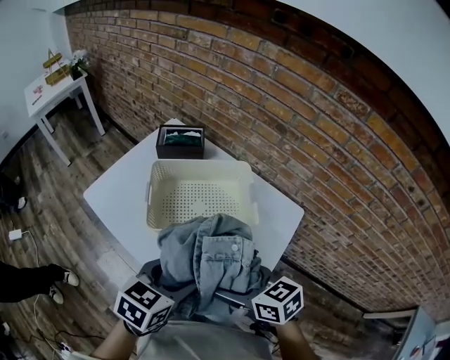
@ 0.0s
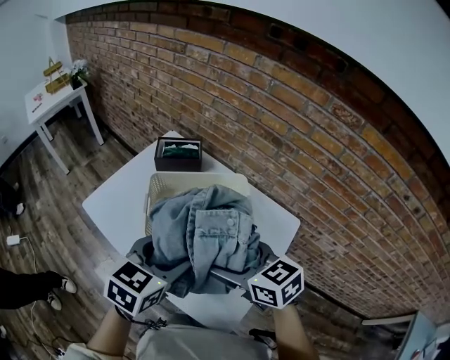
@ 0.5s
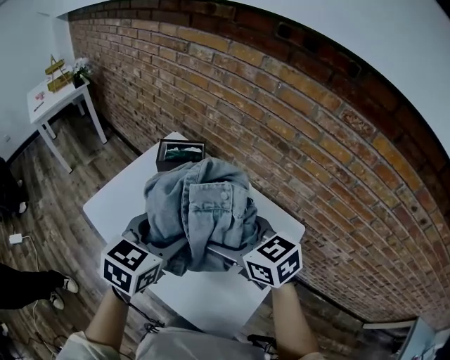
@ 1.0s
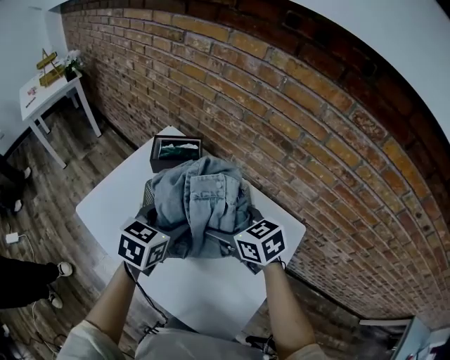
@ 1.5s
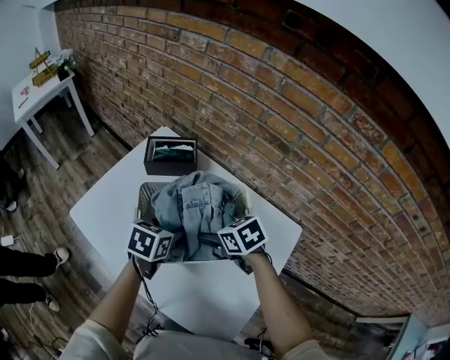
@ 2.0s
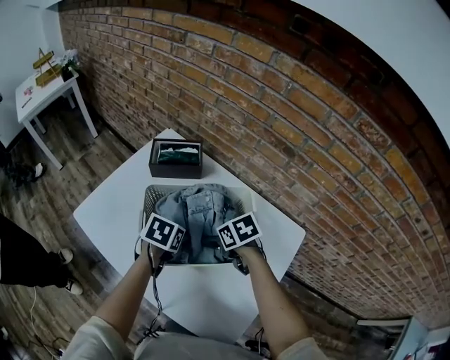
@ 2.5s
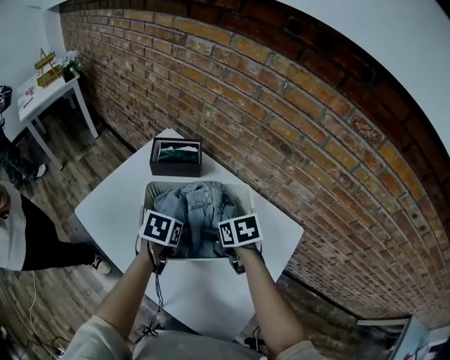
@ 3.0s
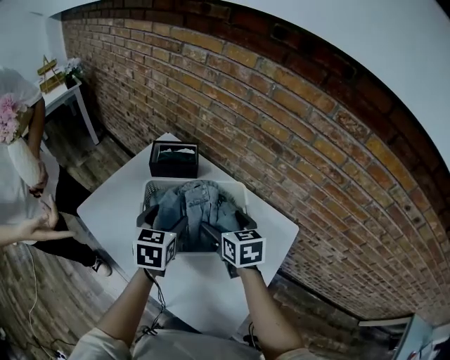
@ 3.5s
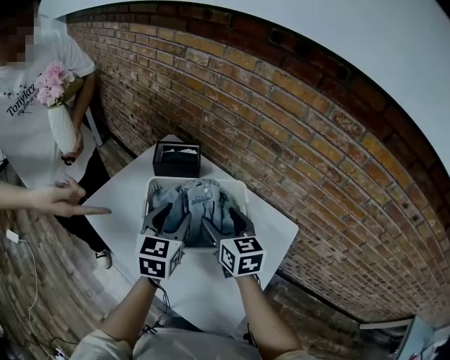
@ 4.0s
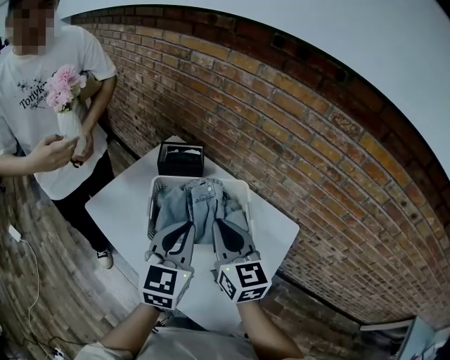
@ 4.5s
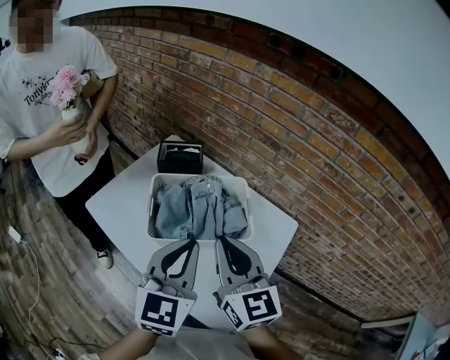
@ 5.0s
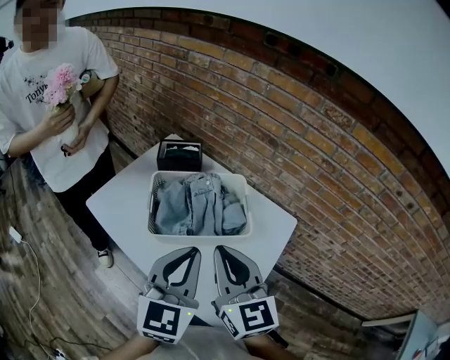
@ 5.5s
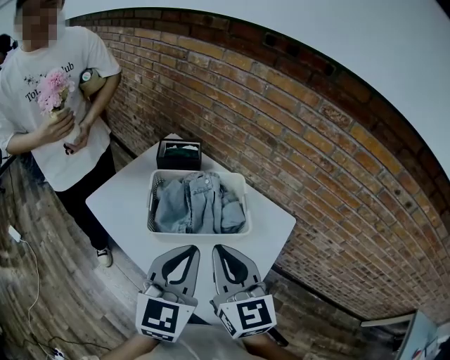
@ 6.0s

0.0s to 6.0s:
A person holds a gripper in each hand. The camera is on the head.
0.0s to 2.0s: The two grippers go about 25 cm forward.
2.0s to 4.0s: The grippers both shift upward by approximately 10 cm. The left gripper turns by about 30 degrees. The right gripper tips its fingers upward by about 30 degrees.
4.0s to 6.0s: Both grippers travel together backward and upward, some 20 cm. The right gripper closes; the left gripper closes its fingers.

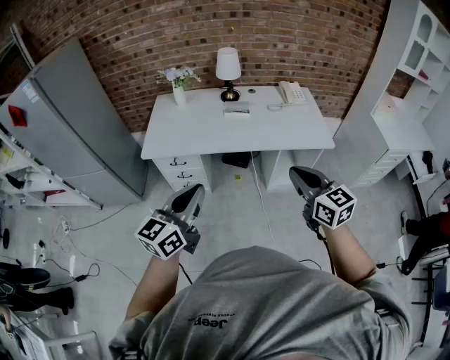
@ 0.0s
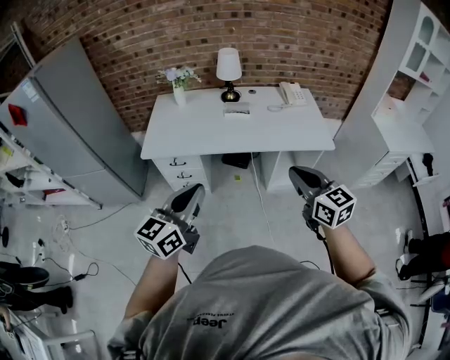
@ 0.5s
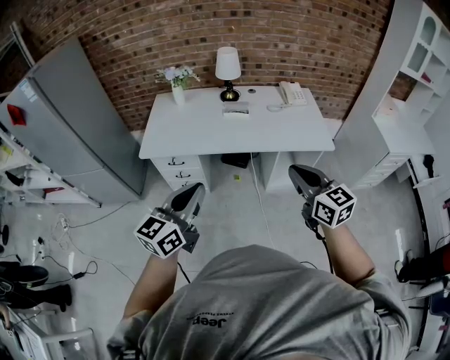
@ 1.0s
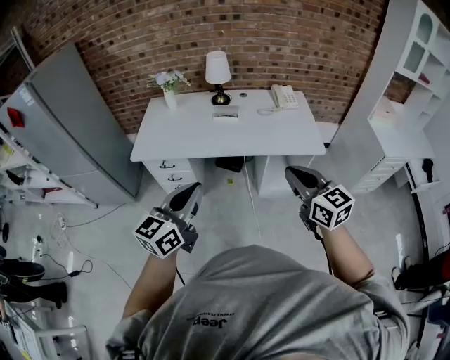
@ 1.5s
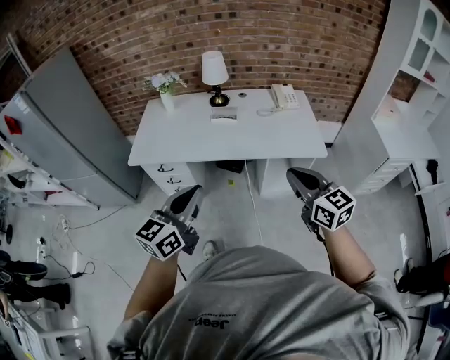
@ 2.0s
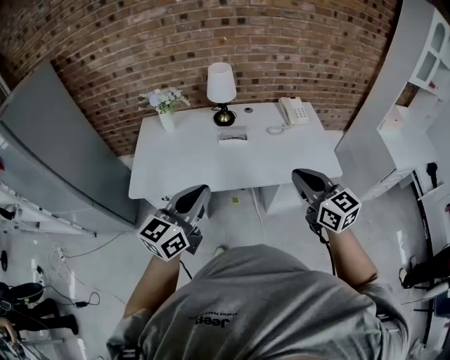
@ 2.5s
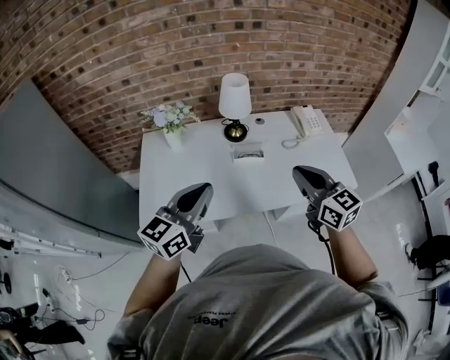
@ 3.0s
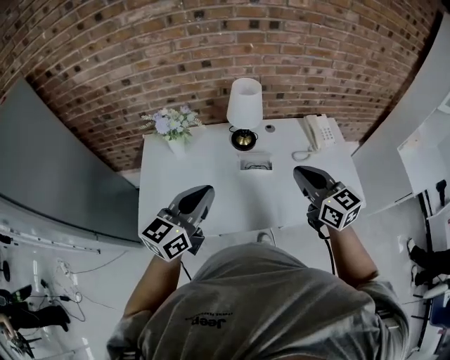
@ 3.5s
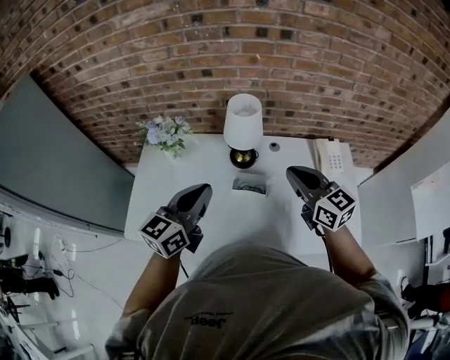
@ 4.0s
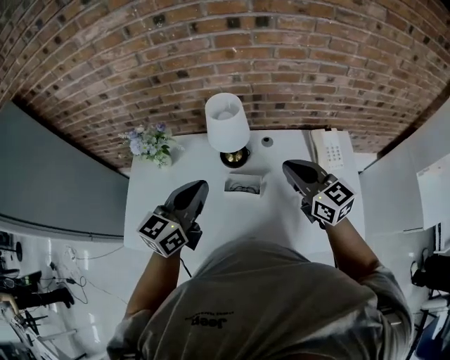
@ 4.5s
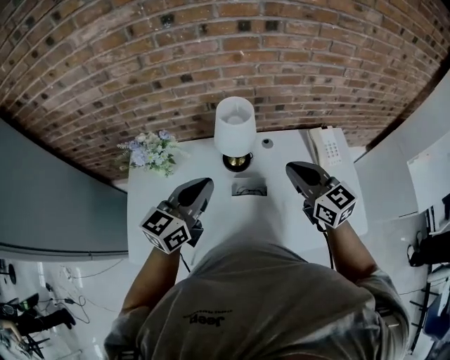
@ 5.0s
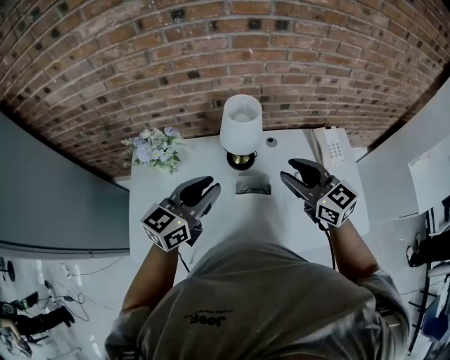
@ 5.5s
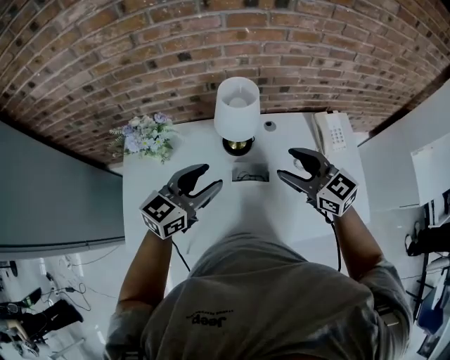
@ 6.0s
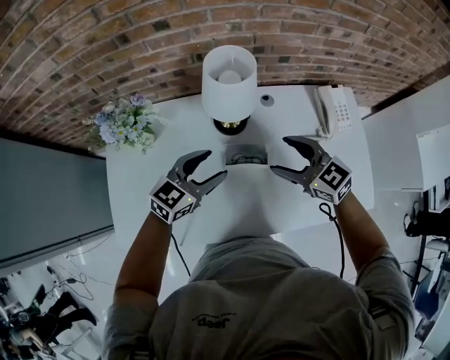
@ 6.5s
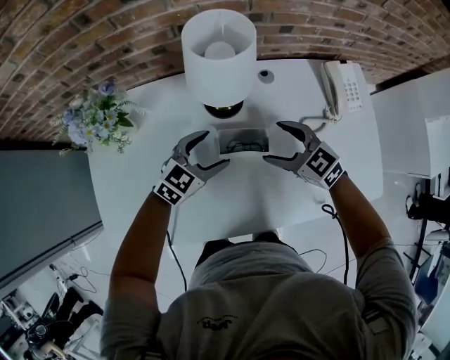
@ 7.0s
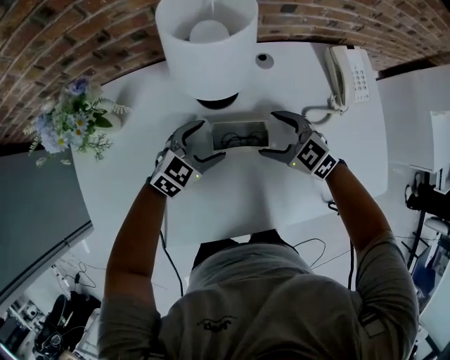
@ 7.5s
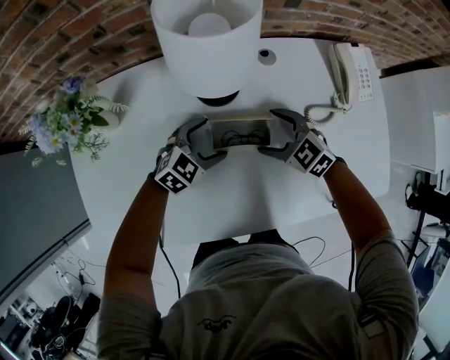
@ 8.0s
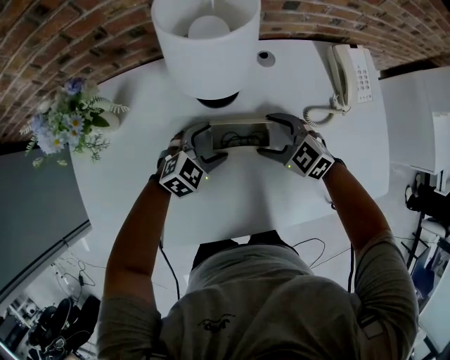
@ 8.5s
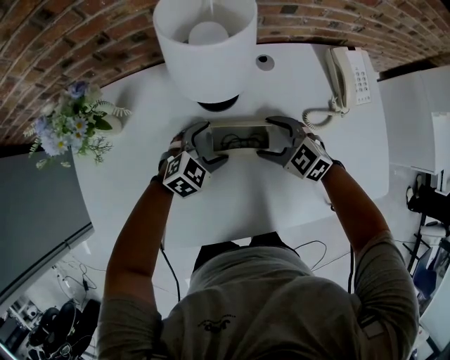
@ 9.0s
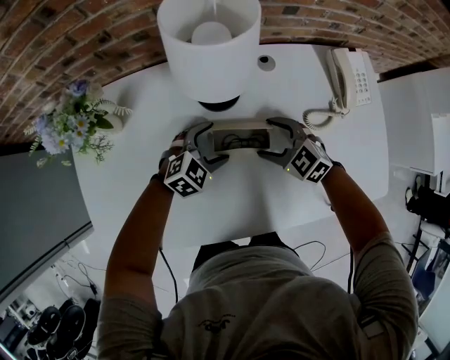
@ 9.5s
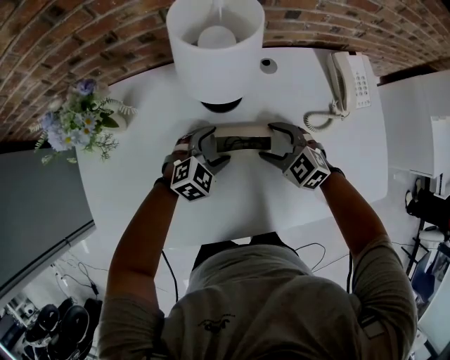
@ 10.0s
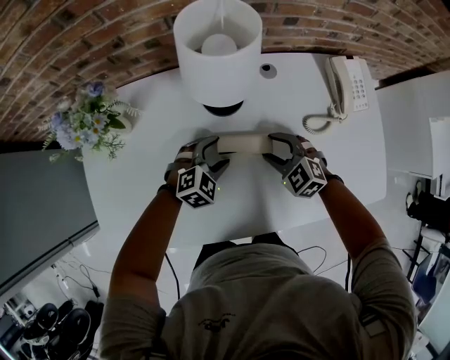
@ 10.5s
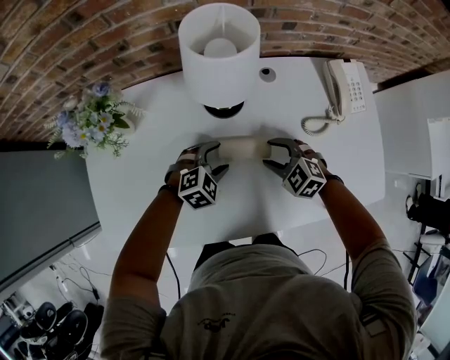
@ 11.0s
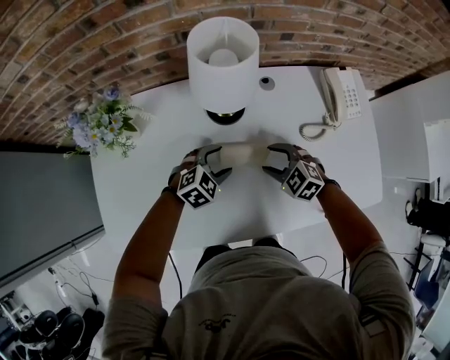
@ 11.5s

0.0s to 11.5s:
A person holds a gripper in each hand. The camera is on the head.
0.0s to 2.0s: Both grippers move to the right and forward, some 15 cm.
2.0s to 4.0s: The pair of grippers is taken forward, about 50 cm.
4.0s to 6.0s: The left gripper shifts about 10 cm forward and downward, turns by some 20 degrees, and opens up. Meanwhile the right gripper moves downward, roughly 5 cm, and opens.
6.0s to 7.5s: Both grippers move downward, approximately 30 cm. The left gripper turns by some 30 degrees, and opens its fingers. Meanwhile the right gripper rotates some 30 degrees, and opens up.
7.5s to 9.5s: The grippers move only a little.
9.5s to 11.5s: There are only small adjustments of the grippers.

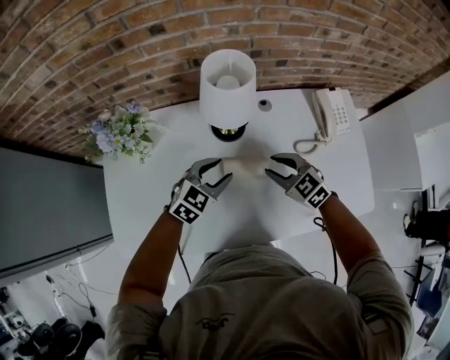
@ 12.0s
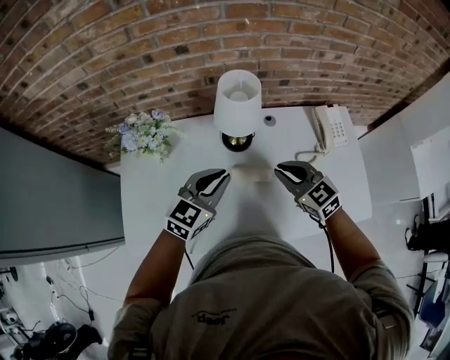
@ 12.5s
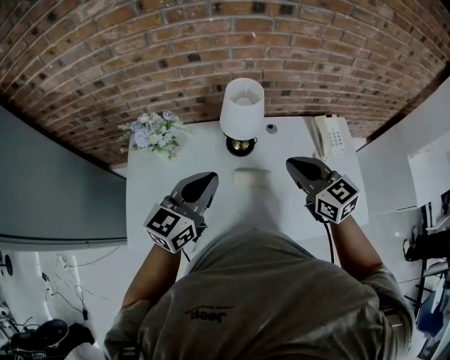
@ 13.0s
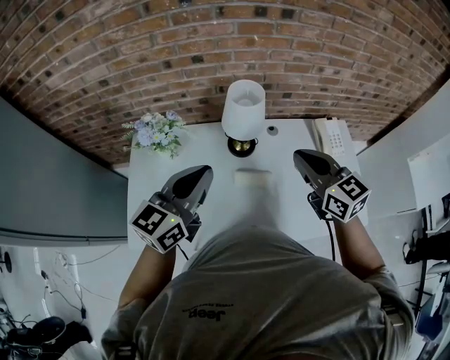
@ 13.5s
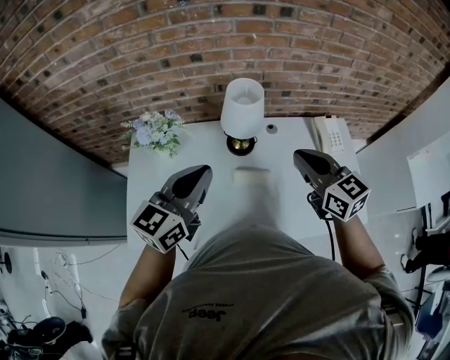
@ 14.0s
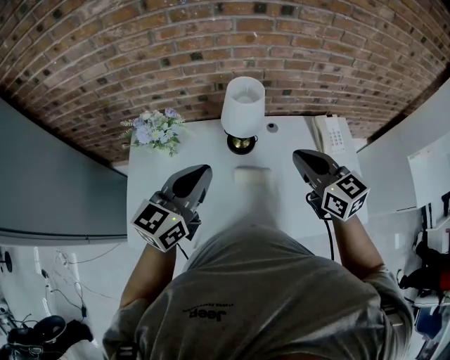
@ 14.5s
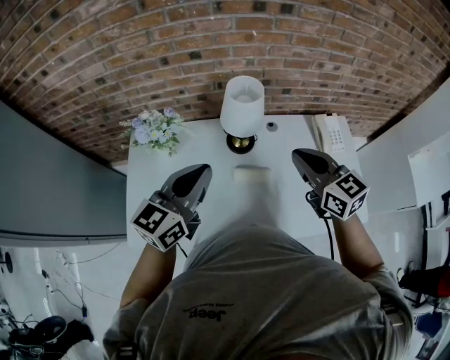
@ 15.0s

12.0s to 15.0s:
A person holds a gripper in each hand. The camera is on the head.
12.0s to 13.5s: The two grippers go roughly 30 cm upward. The left gripper rotates approximately 40 degrees, and closes its fingers. The right gripper turns by some 30 degrees.
13.5s to 15.0s: The two grippers keep their place.

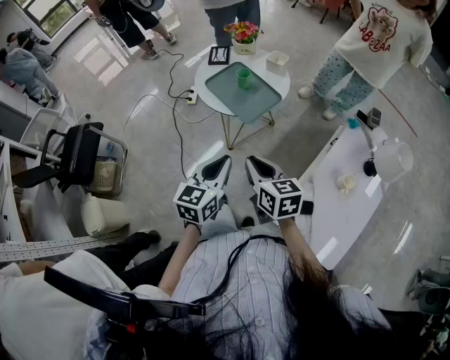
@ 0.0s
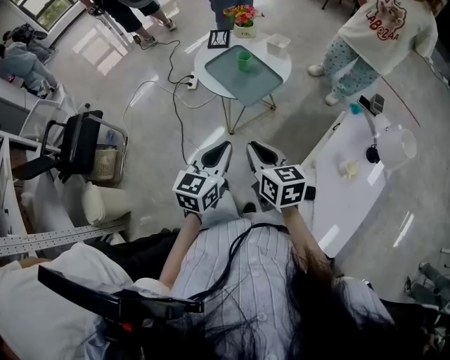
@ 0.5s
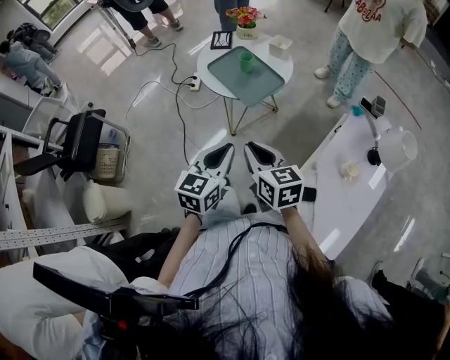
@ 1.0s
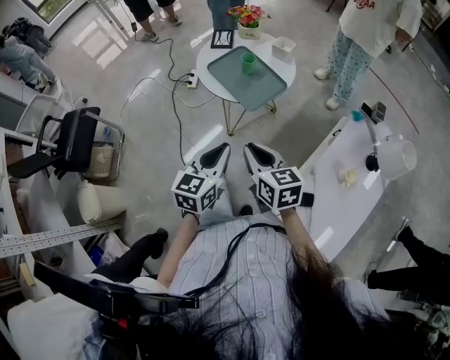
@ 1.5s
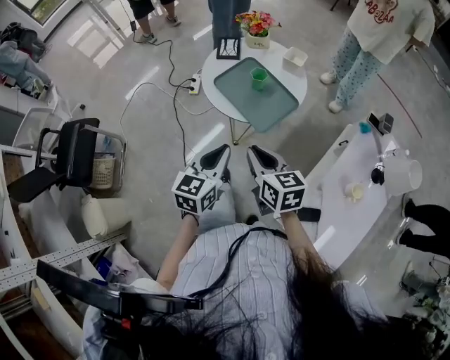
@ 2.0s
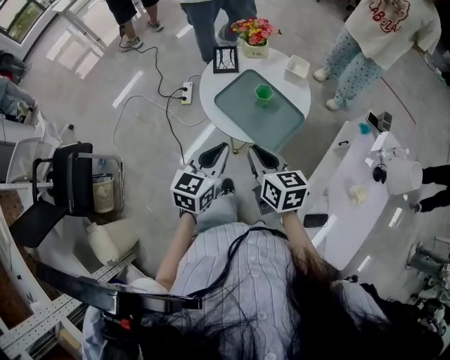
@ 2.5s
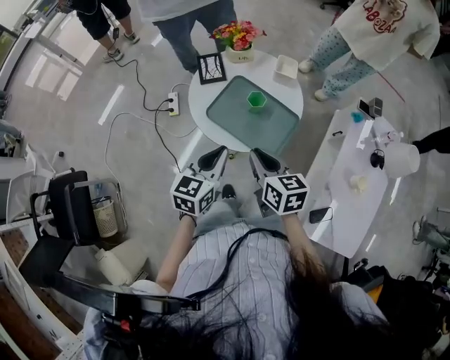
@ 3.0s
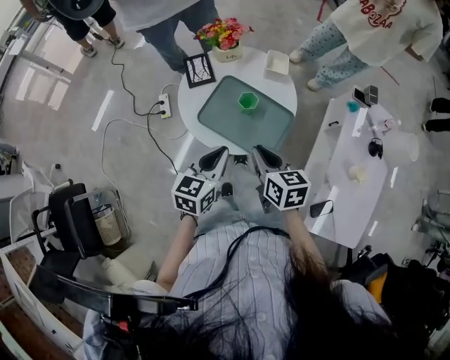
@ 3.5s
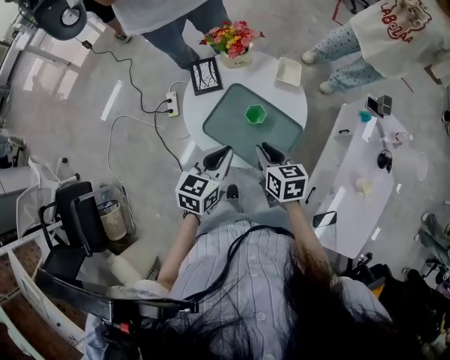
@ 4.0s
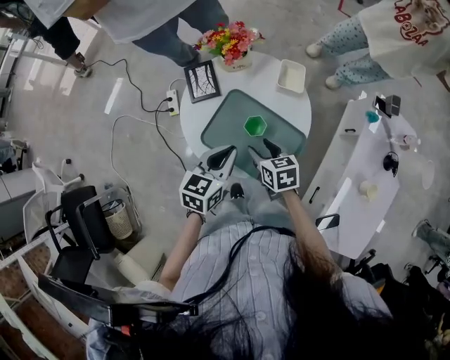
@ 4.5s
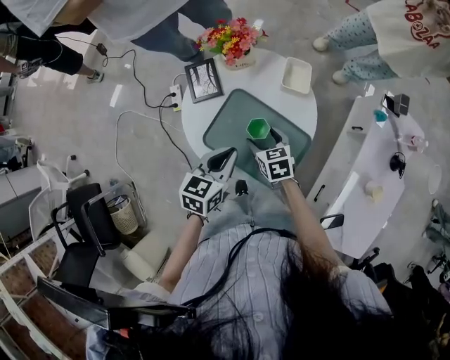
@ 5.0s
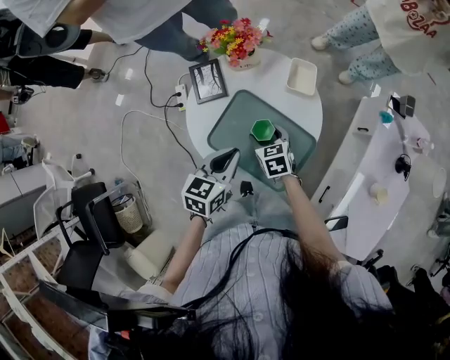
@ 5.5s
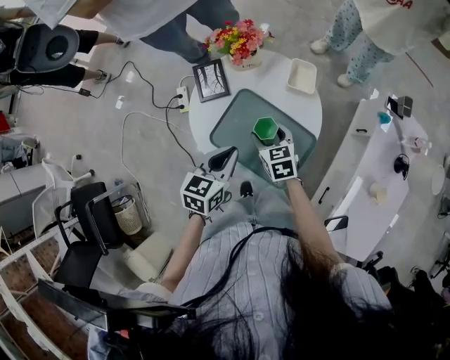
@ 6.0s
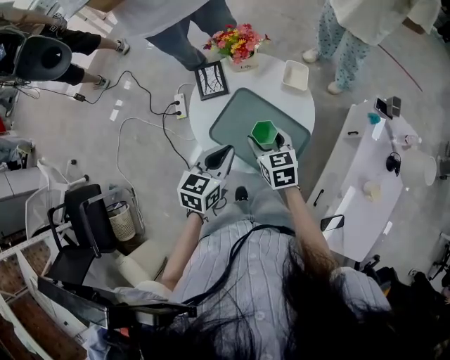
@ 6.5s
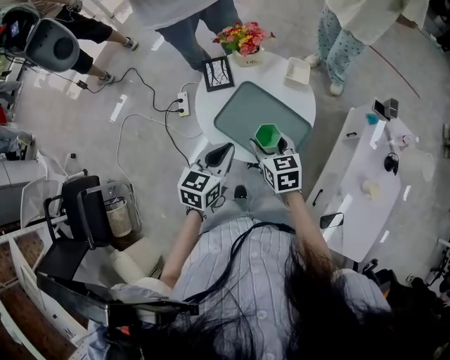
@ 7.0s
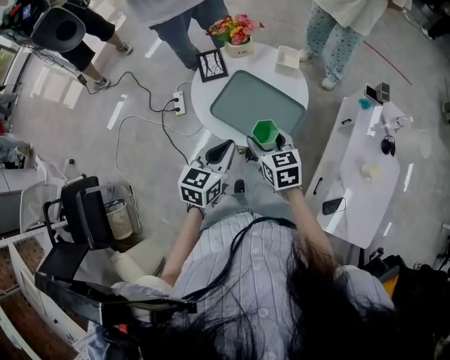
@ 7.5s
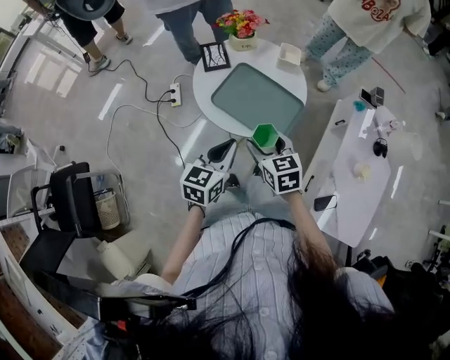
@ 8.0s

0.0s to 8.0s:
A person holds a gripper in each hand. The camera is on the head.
0.0s to 2.0s: Both grippers travel together forward, roughly 15 cm.
2.0s to 4.0s: The left gripper shifts some 25 cm forward, and rotates roughly 20 degrees. Meanwhile the right gripper is displaced forward and downward by some 25 cm, and swivels approximately 20 degrees.
4.0s to 6.0s: The left gripper travels forward by about 5 cm. The right gripper shifts approximately 15 cm forward and downward, and opens its fingers.
6.0s to 8.0s: The right gripper is displaced backward and upward by about 25 cm. Meanwhile the left gripper is displaced backward by approximately 15 cm.
